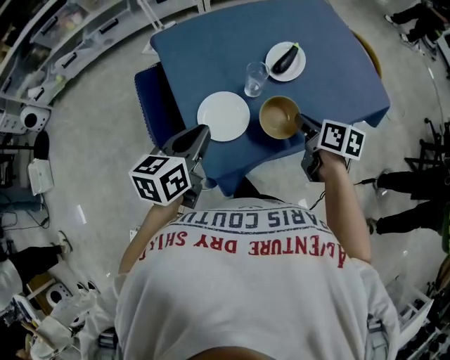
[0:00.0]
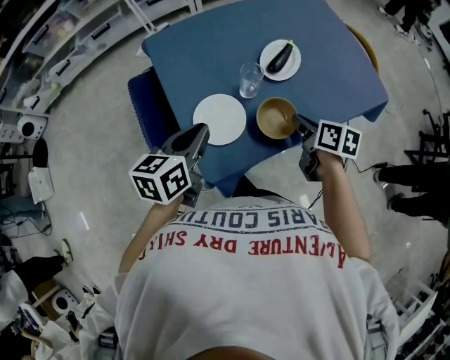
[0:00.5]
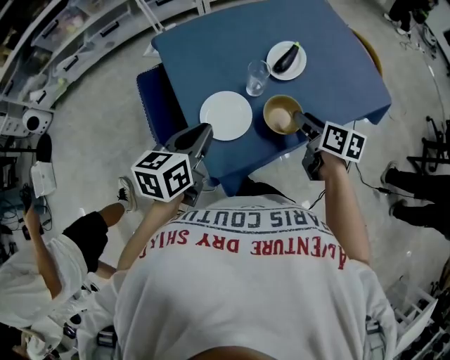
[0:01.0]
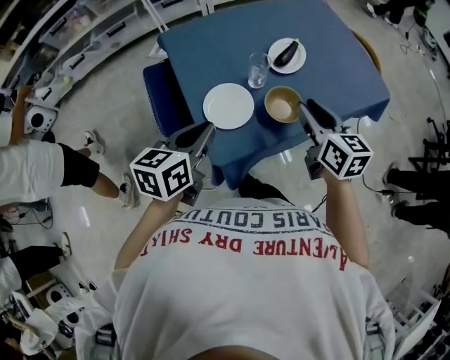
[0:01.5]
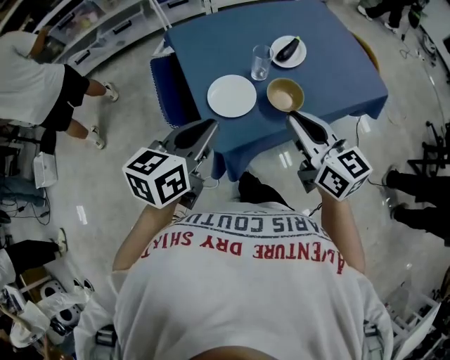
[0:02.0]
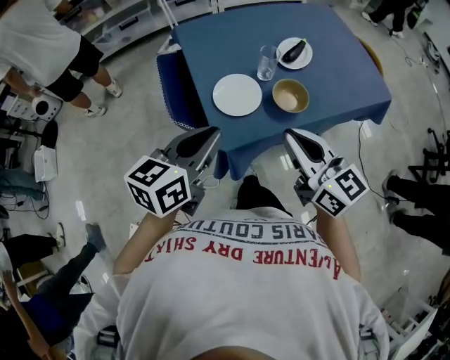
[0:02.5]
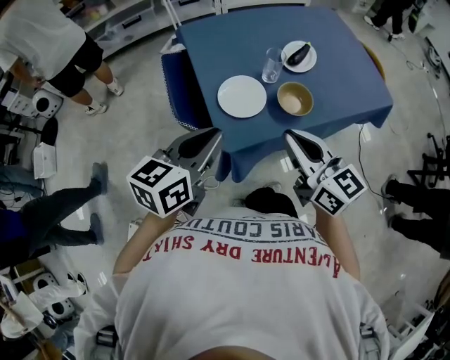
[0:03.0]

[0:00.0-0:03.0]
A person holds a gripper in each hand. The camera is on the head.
0:00.0 to 0:01.5: The right gripper heads upward, covering roughly 10 cm, and rotates some 30 degrees.
0:01.5 to 0:03.0: The left gripper shifts approximately 10 cm backward, while the right gripper is displaced backward and to the left by about 15 cm, and changes its angle by some 20 degrees.

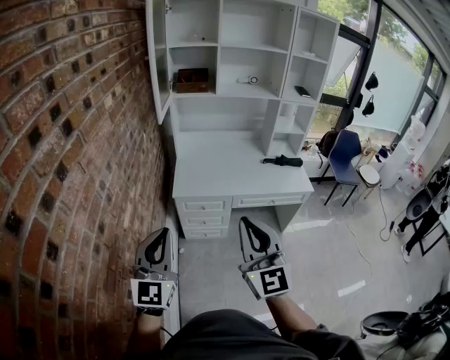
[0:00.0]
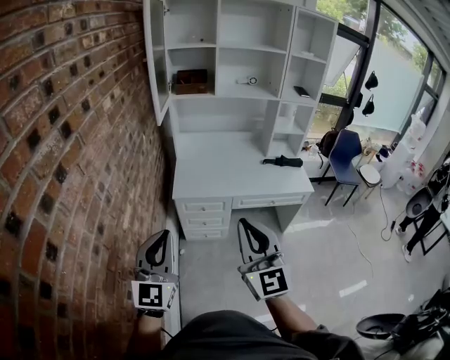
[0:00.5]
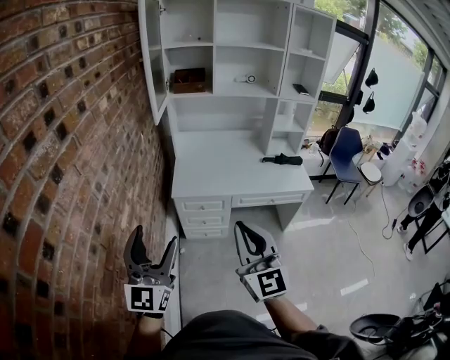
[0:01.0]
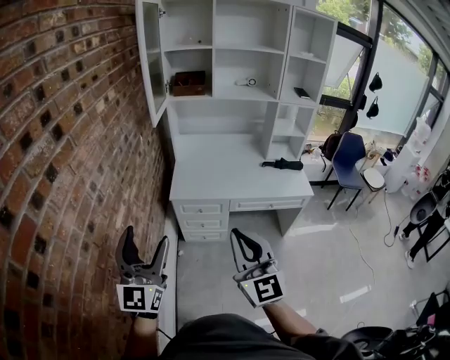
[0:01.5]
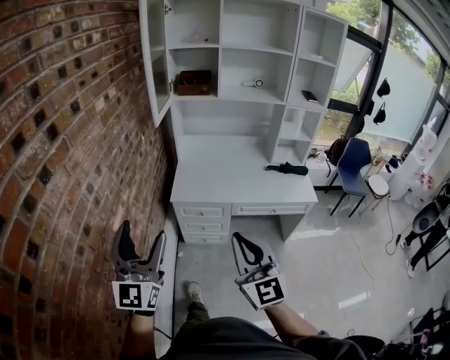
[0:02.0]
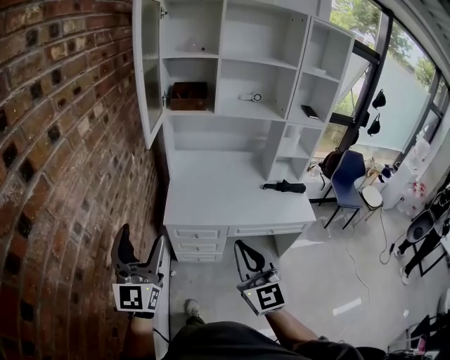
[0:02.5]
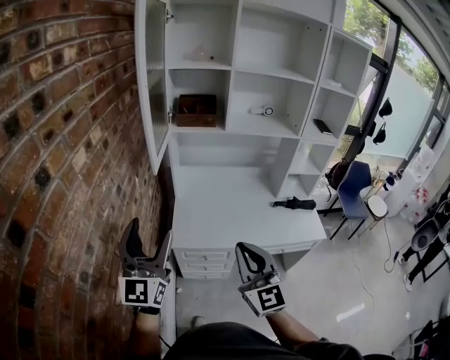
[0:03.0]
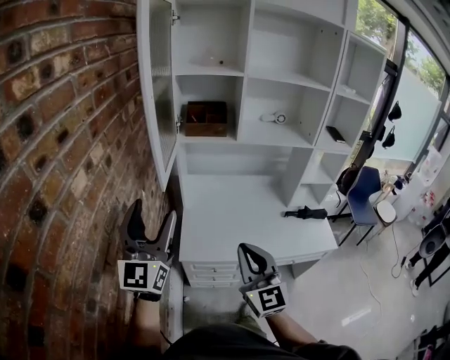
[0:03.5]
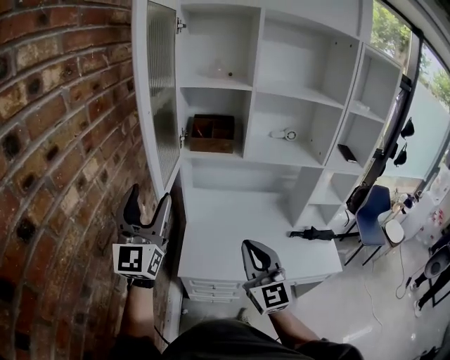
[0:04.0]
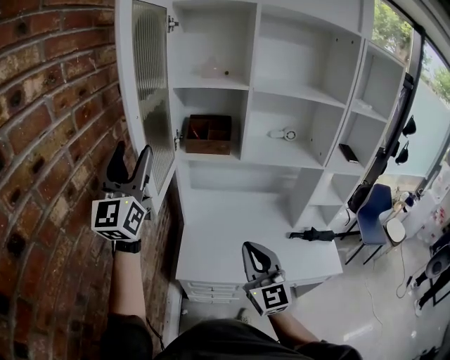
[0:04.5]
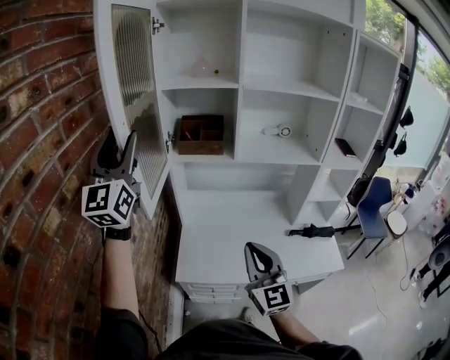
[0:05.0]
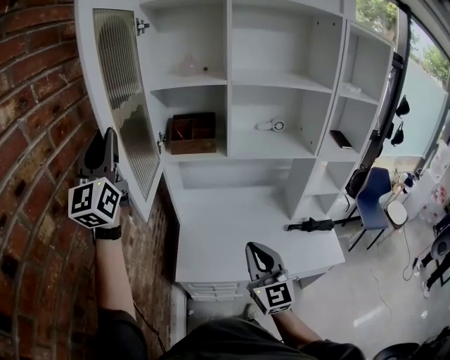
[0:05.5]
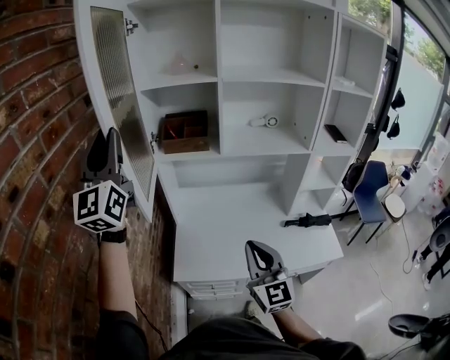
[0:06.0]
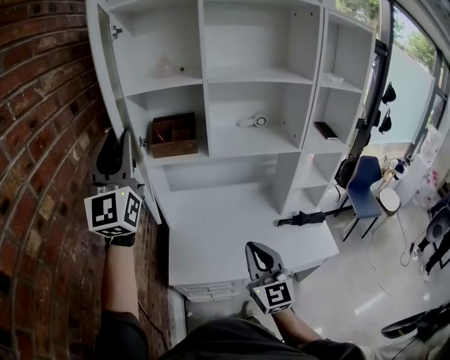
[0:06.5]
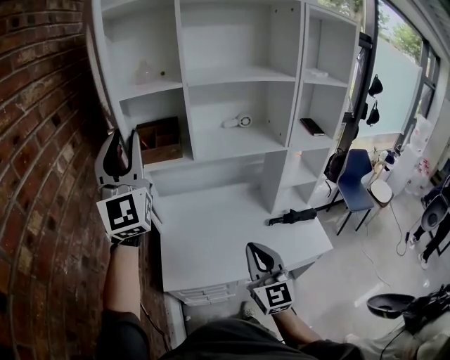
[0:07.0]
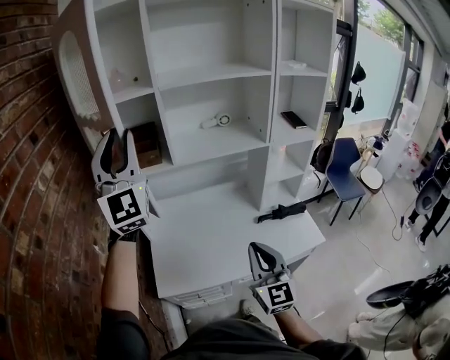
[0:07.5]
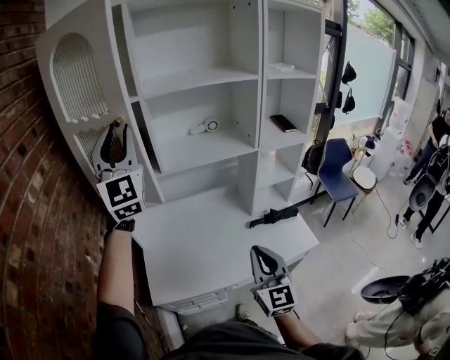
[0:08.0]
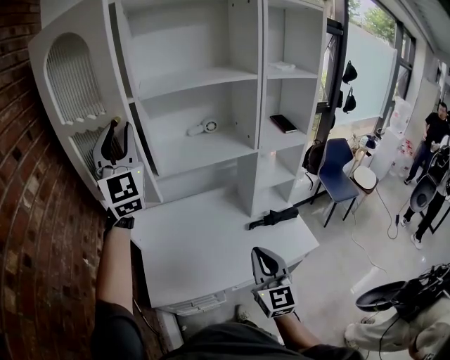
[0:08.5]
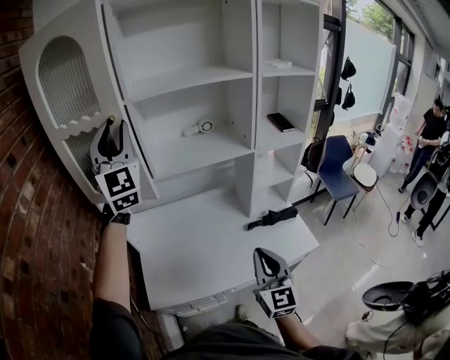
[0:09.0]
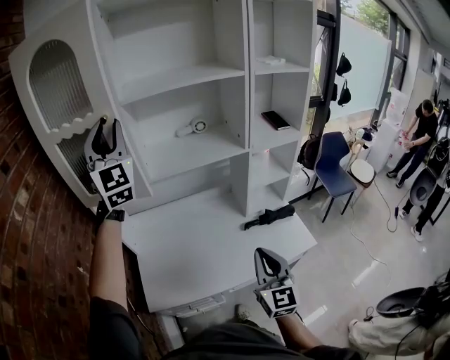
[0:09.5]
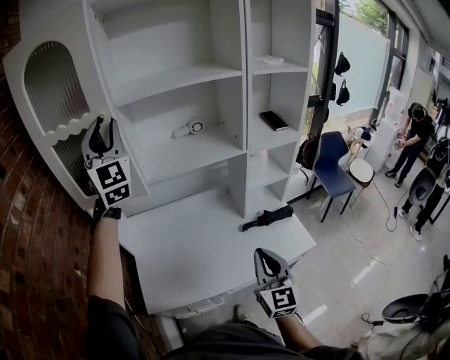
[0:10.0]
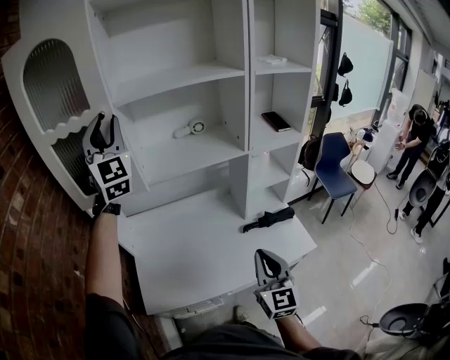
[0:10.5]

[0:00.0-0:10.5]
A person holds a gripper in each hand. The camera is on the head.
0:00.0 to 0:02.0: The left gripper opens; the right gripper changes place by some 5 cm.
0:02.0 to 0:04.0: The two grippers travel together, forward, approximately 40 cm.
0:04.0 to 0:06.5: The left gripper travels upward, forward and to the right by approximately 20 cm, and closes its fingers; the right gripper is displaced to the right by roughly 10 cm.
0:06.5 to 0:08.5: The left gripper travels to the right and forward by roughly 20 cm, while the right gripper travels to the right by roughly 15 cm.
0:08.5 to 0:10.5: The right gripper moves to the right, roughly 5 cm, while the left gripper travels forward by approximately 10 cm.

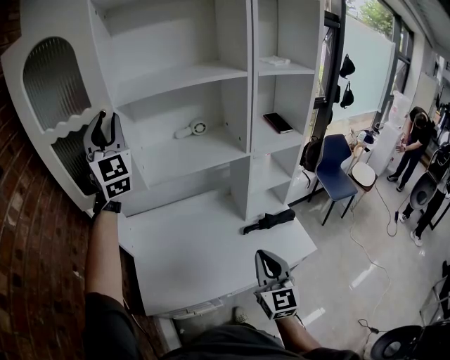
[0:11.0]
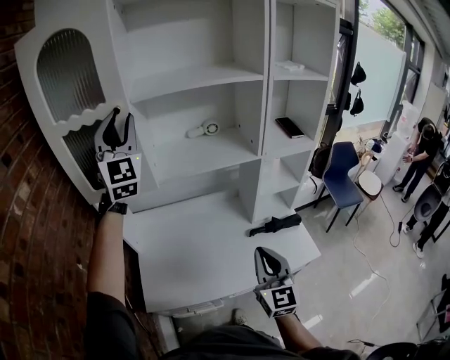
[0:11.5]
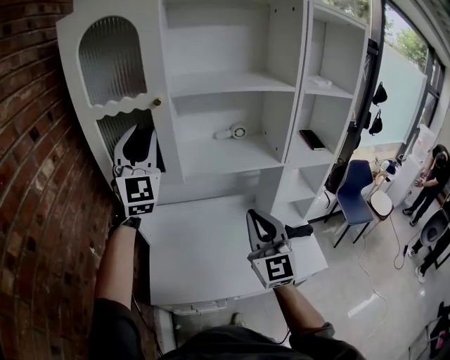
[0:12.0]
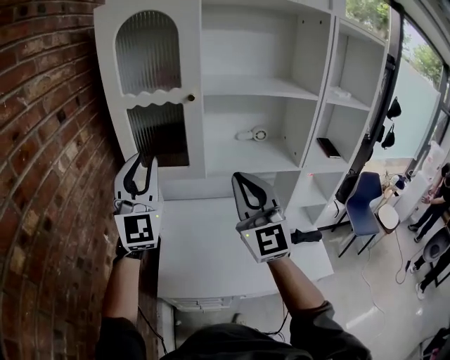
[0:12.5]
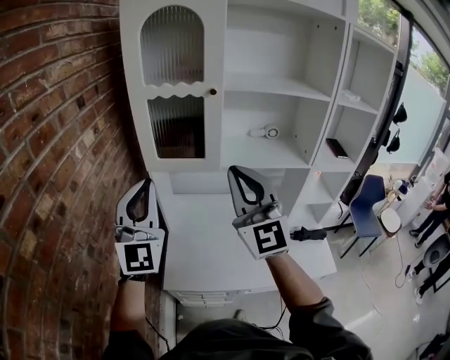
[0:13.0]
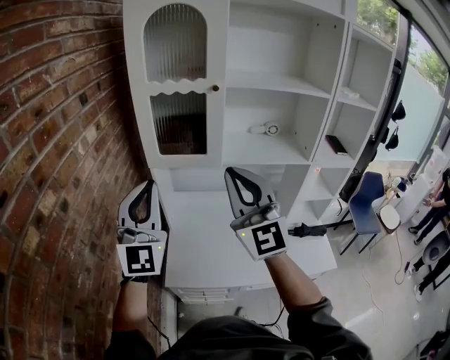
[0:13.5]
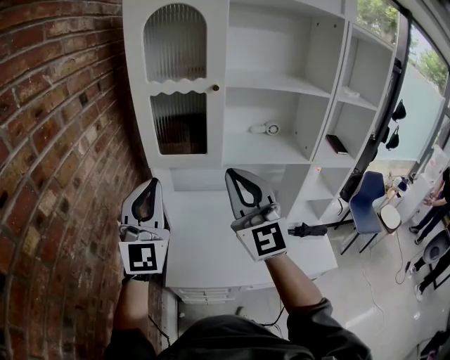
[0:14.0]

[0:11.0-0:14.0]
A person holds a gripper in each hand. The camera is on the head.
0:11.0 to 0:12.5: The left gripper is displaced backward and to the left by roughly 20 cm; the right gripper moves upward, to the left and forward, some 35 cm, and rotates roughly 40 degrees.
0:12.5 to 0:14.0: The left gripper travels backward and to the left by some 10 cm. Meanwhile the right gripper moves to the left, roughly 10 cm.

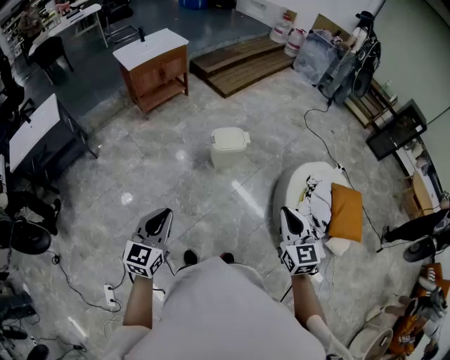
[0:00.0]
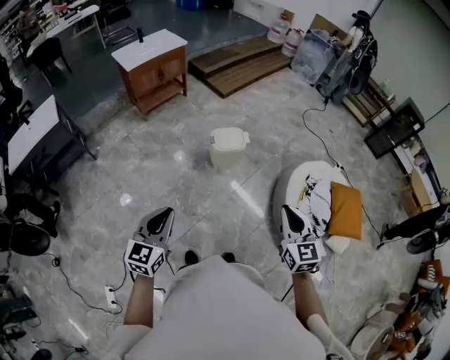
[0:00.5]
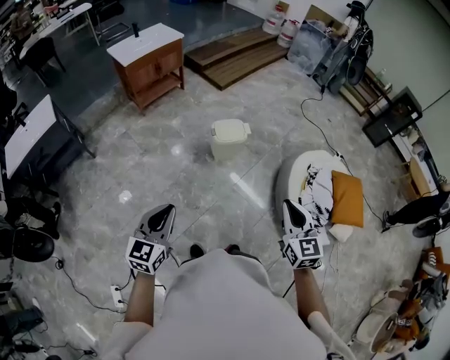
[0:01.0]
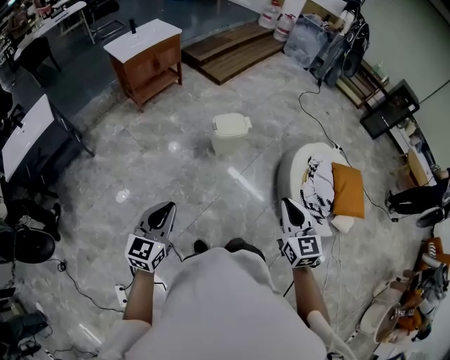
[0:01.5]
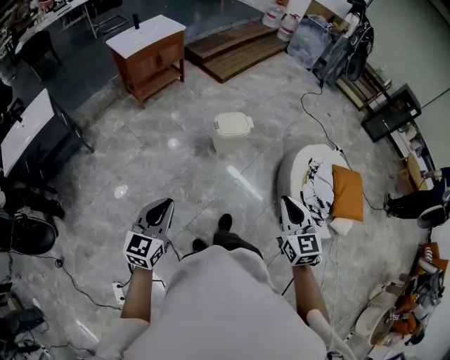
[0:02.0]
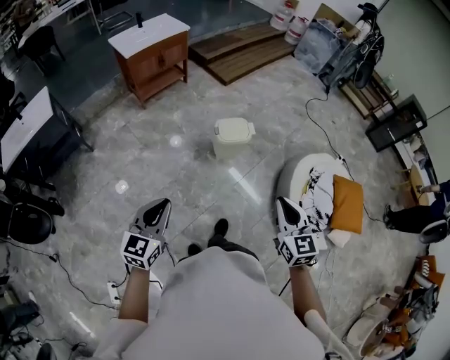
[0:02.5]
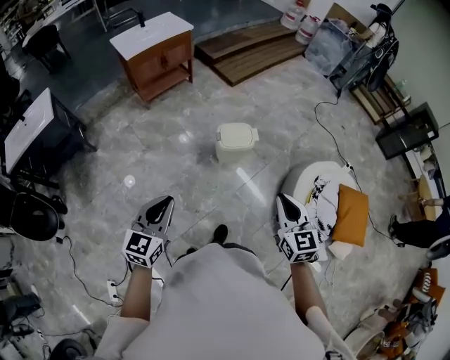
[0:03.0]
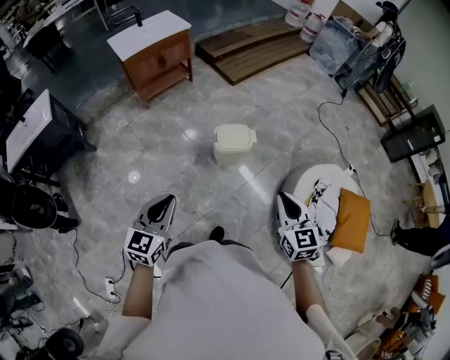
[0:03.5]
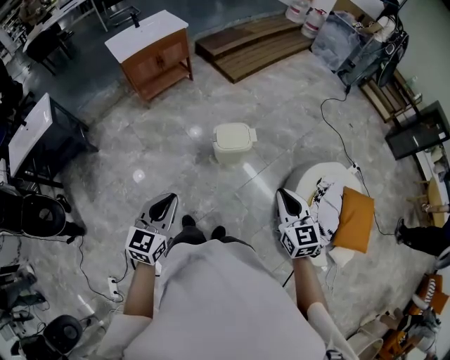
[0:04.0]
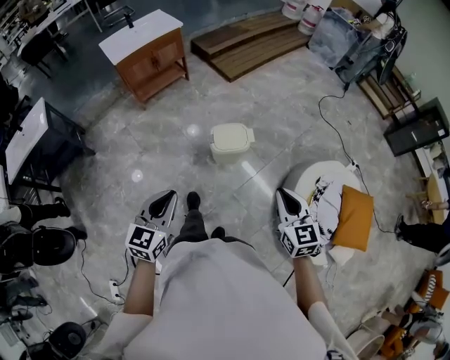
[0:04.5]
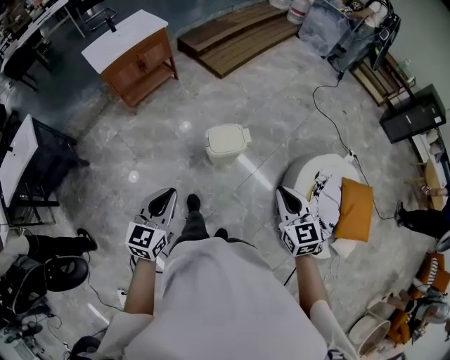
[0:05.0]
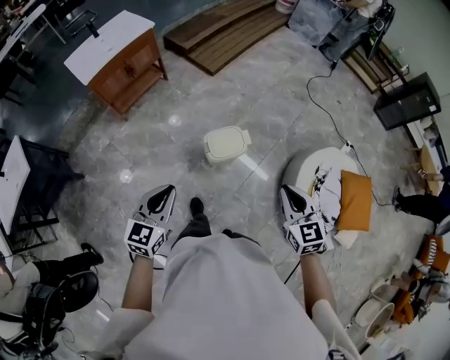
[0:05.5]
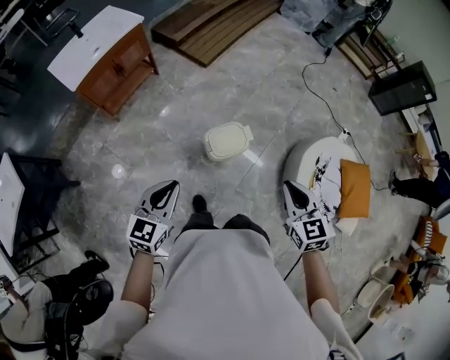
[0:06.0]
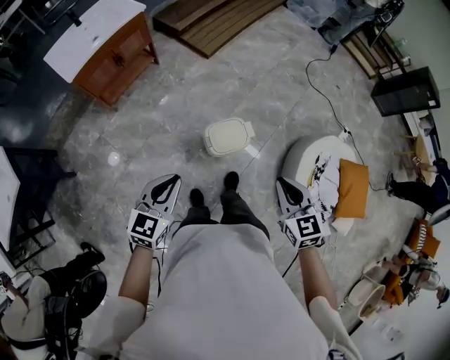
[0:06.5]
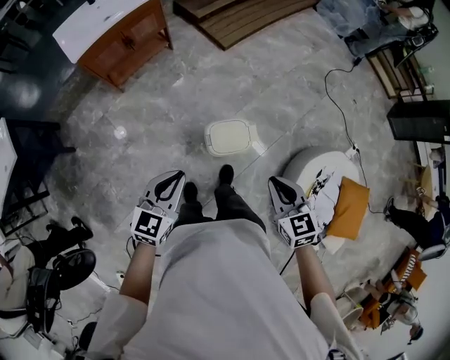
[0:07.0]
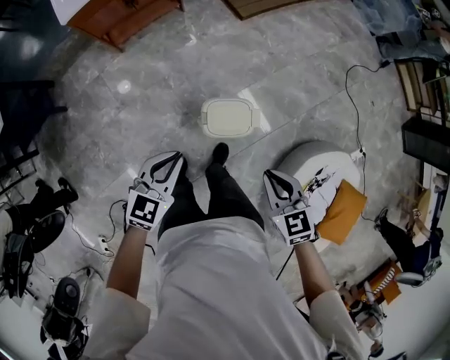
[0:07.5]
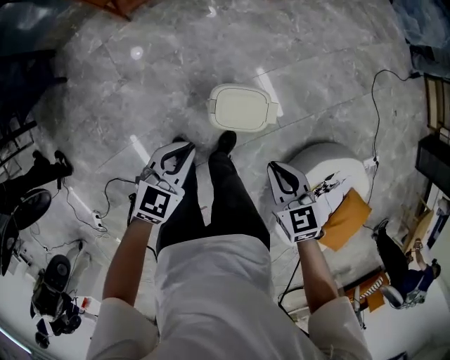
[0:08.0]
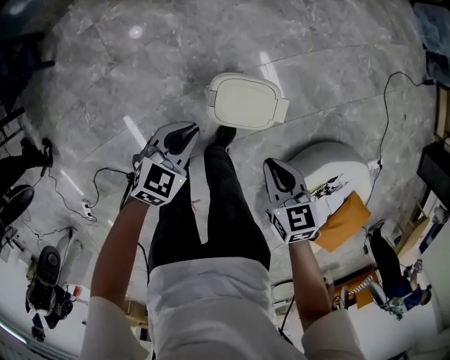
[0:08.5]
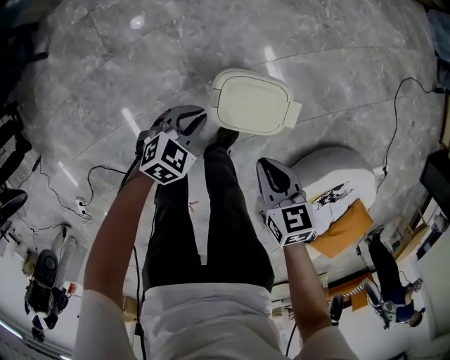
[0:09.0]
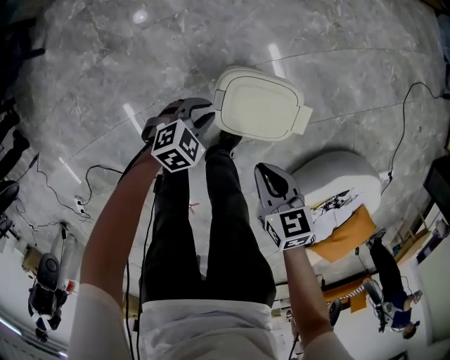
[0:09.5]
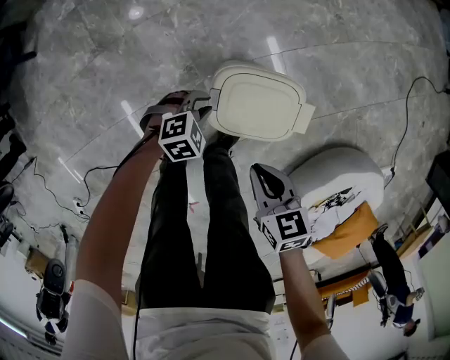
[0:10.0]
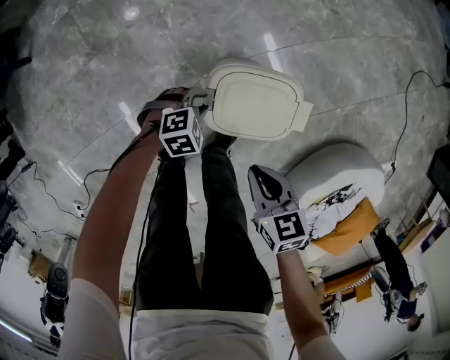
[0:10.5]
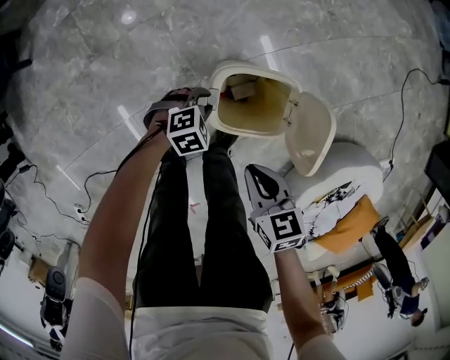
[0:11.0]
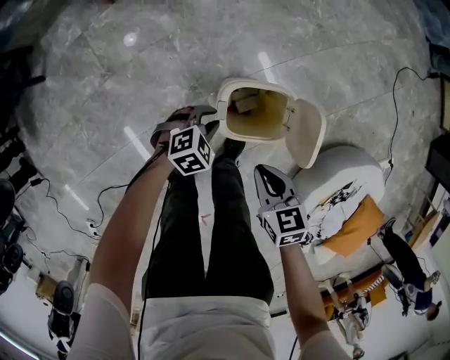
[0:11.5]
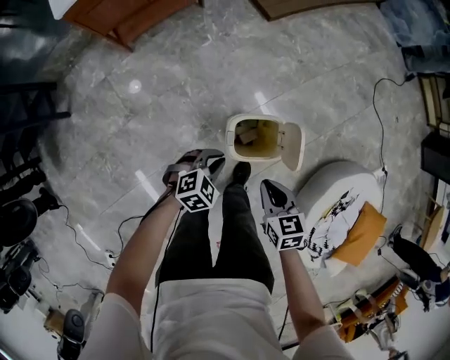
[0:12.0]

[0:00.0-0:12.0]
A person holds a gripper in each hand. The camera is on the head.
0:00.0 to 0:02.0: Both grippers move to the left, some 10 cm.
0:02.0 to 0:04.0: Both grippers move forward and to the right, some 25 cm.
0:04.0 to 0:06.0: The grippers both shift forward and to the left by approximately 25 cm.
0:06.0 to 0:08.0: Both grippers travel together downward, roughly 20 cm. The right gripper rotates approximately 40 degrees.
0:08.0 to 0:10.0: The right gripper heads downward, covering about 25 cm. The left gripper travels downward by about 40 cm, and changes its angle by some 40 degrees.
0:10.0 to 0:12.0: The left gripper heads upward, covering about 25 cm; the right gripper goes roughly 15 cm upward.
